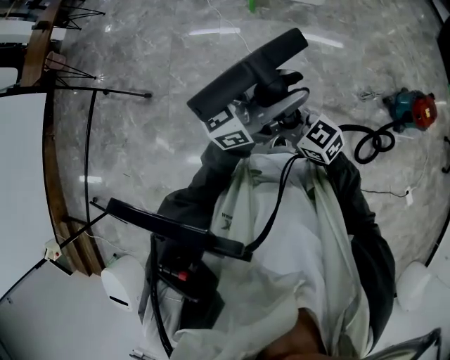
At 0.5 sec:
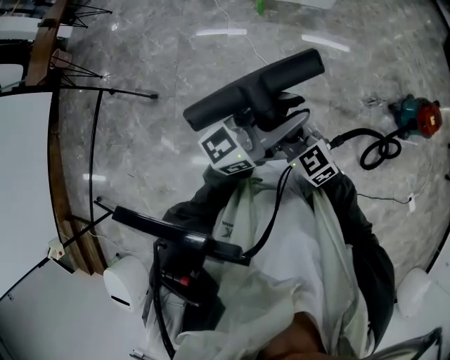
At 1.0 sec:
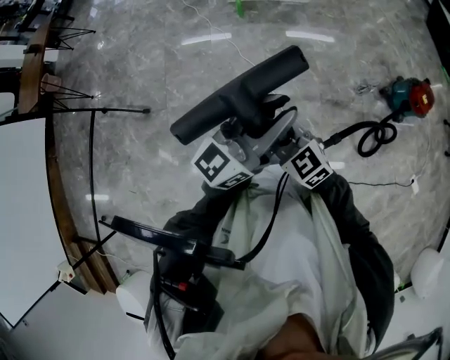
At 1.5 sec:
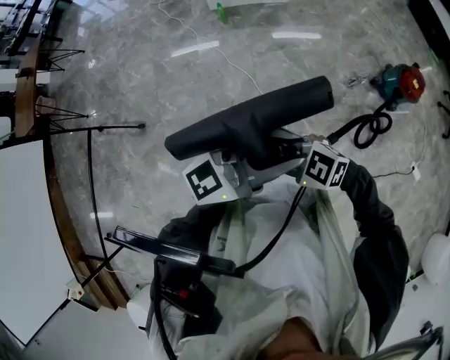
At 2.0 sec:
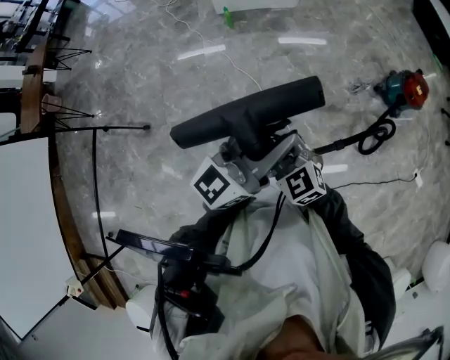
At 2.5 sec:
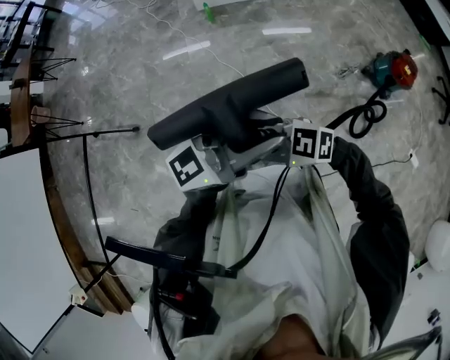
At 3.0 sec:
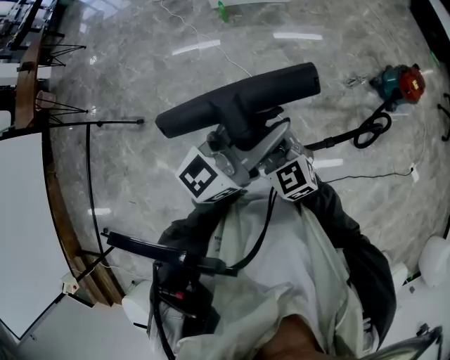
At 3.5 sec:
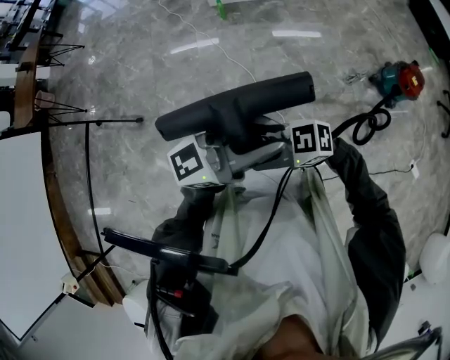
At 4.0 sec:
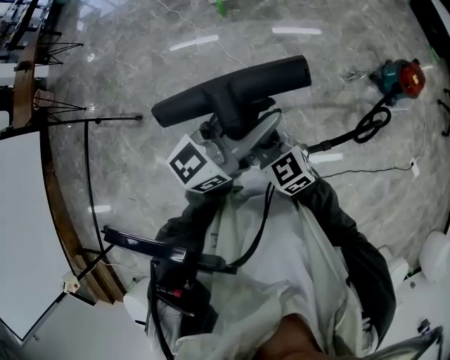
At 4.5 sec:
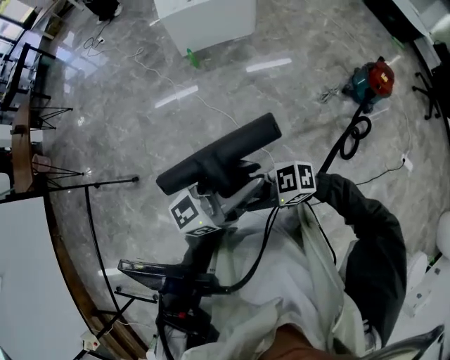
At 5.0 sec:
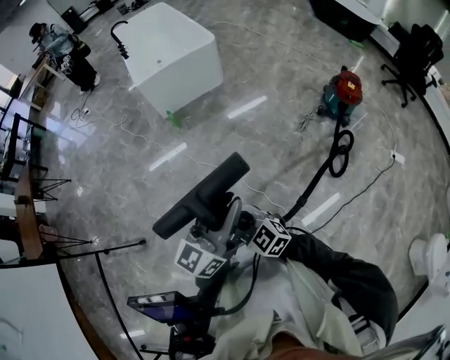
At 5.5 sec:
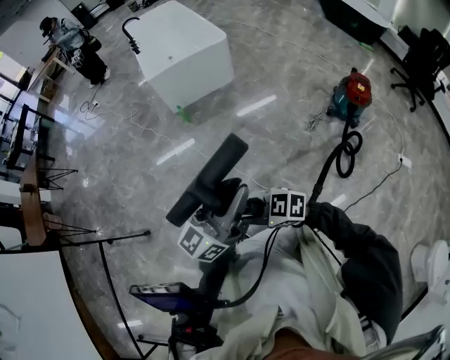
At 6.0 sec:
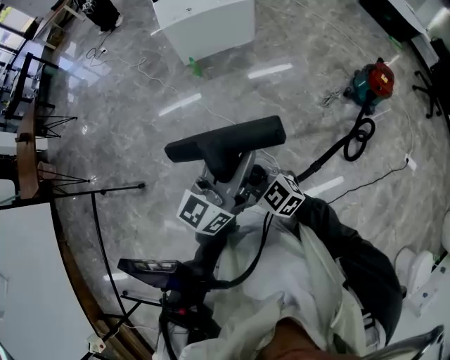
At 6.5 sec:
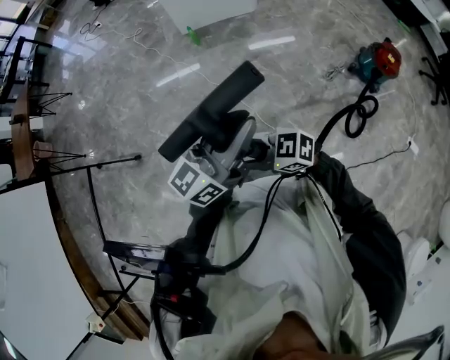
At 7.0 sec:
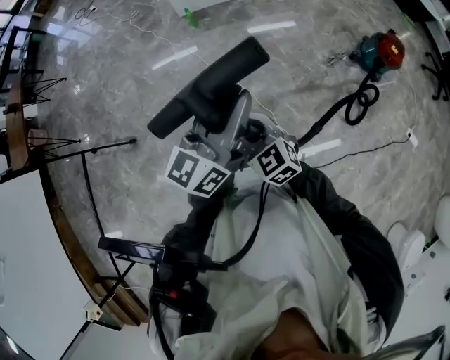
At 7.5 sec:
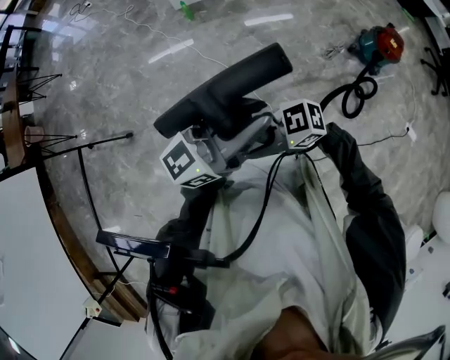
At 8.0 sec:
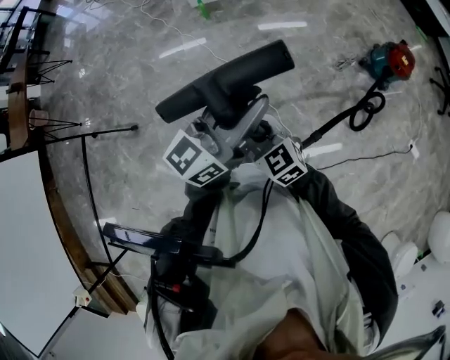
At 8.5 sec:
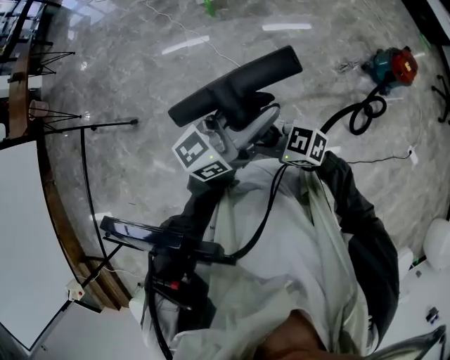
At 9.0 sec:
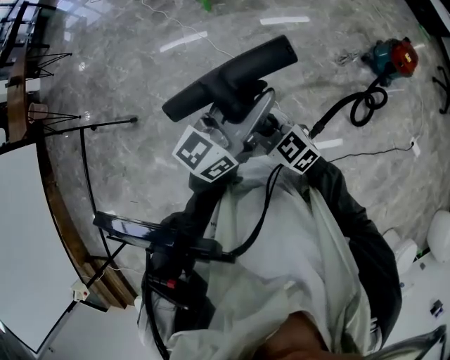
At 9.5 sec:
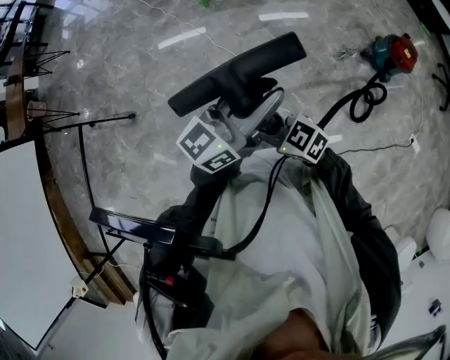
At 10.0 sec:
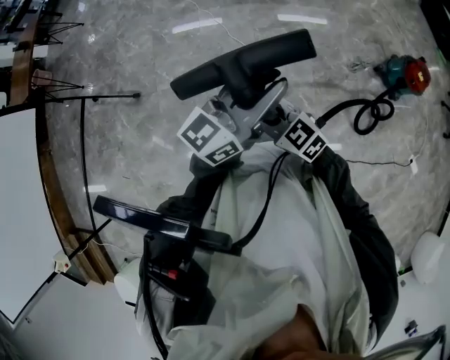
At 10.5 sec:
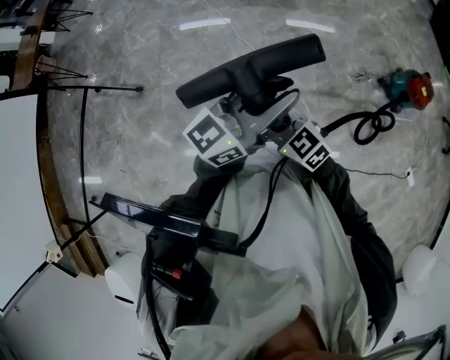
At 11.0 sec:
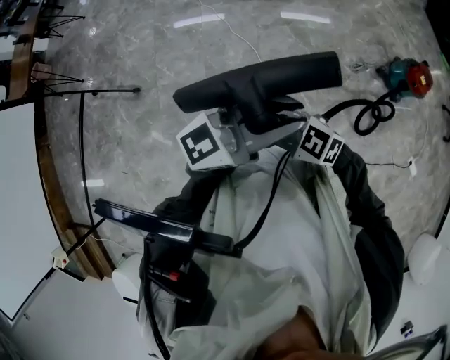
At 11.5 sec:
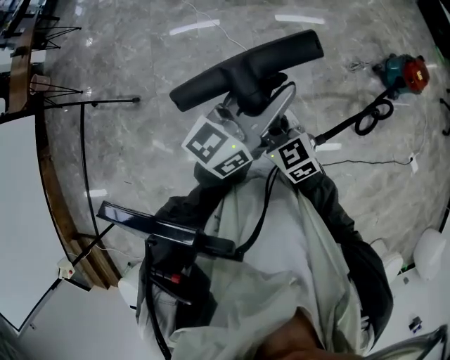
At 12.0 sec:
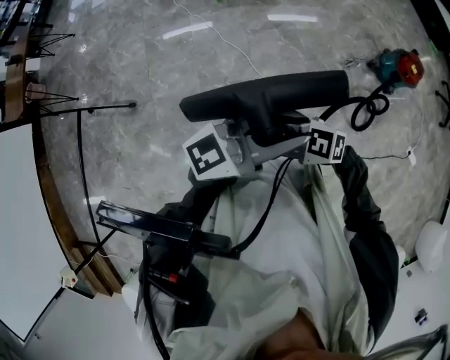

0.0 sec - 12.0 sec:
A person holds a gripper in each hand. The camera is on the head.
0.0 sec - 2.0 sec: The right gripper swivels approximately 30 degrees.
8.0 sec - 10.0 sec: The right gripper swivels some 20 degrees.
10.0 sec - 12.0 sec: The left gripper shifts by some 10 cm, and rotates roughly 30 degrees. Meanwhile the right gripper ends up approximately 5 cm from where it was, and changes its angle by approximately 20 degrees.

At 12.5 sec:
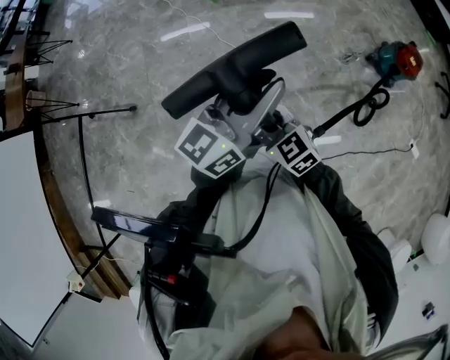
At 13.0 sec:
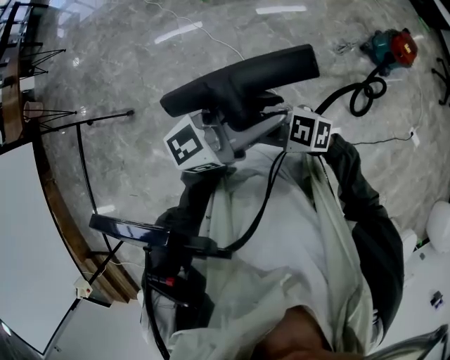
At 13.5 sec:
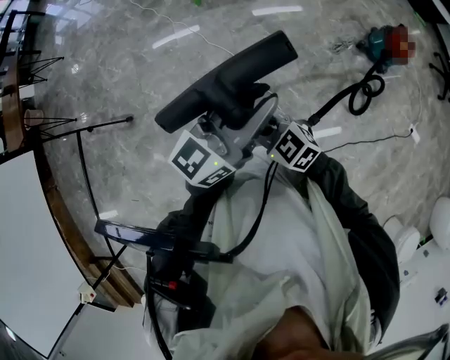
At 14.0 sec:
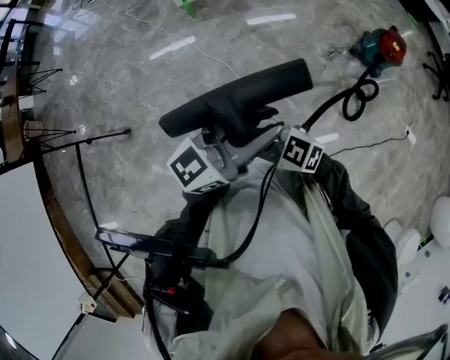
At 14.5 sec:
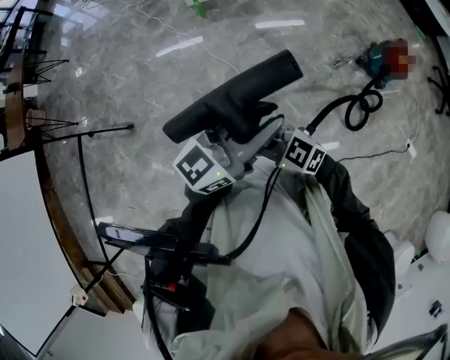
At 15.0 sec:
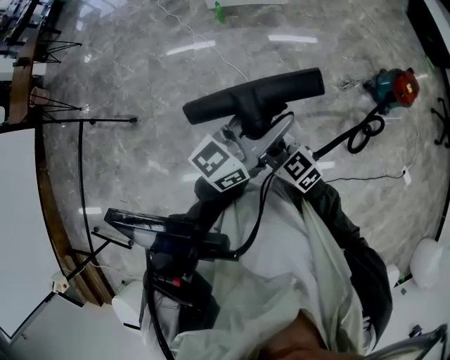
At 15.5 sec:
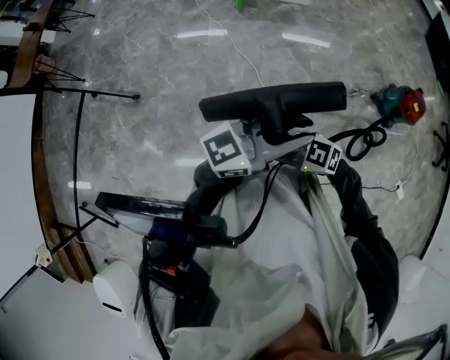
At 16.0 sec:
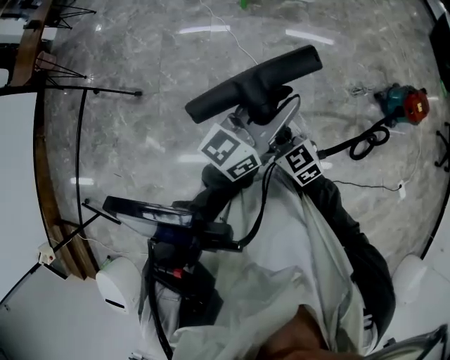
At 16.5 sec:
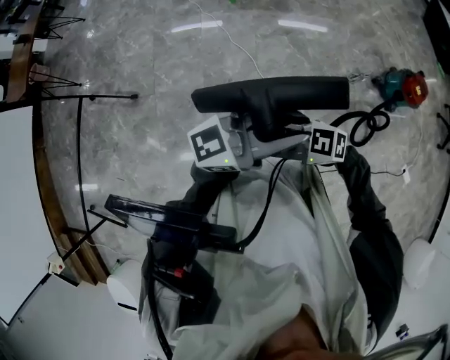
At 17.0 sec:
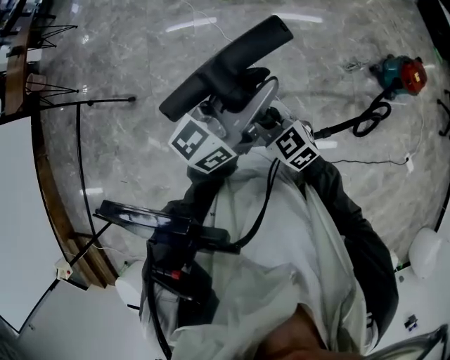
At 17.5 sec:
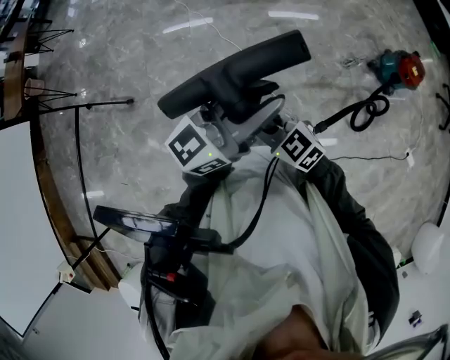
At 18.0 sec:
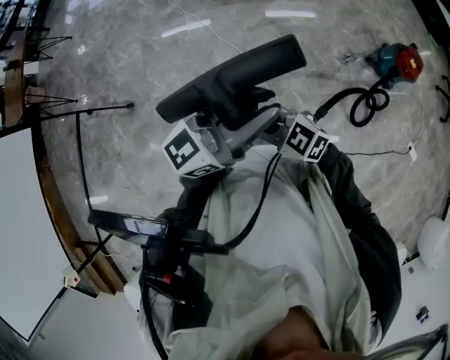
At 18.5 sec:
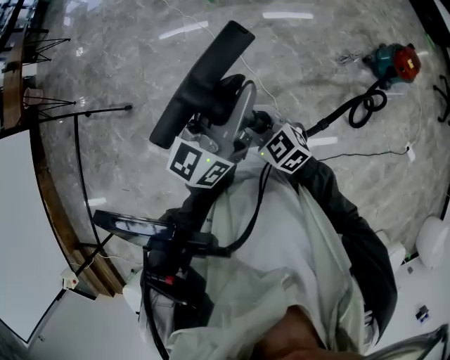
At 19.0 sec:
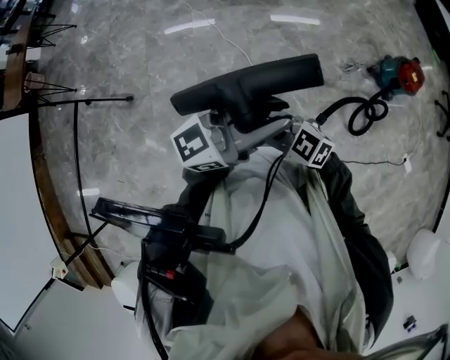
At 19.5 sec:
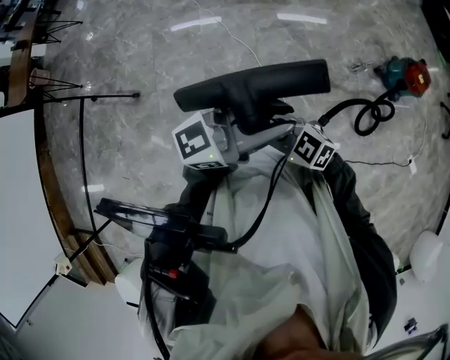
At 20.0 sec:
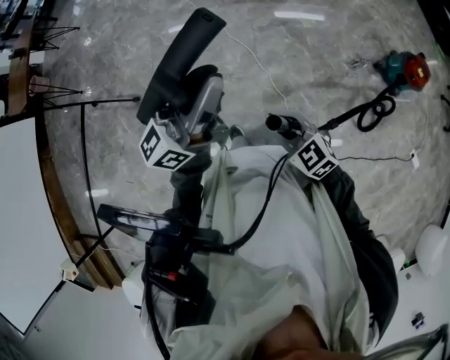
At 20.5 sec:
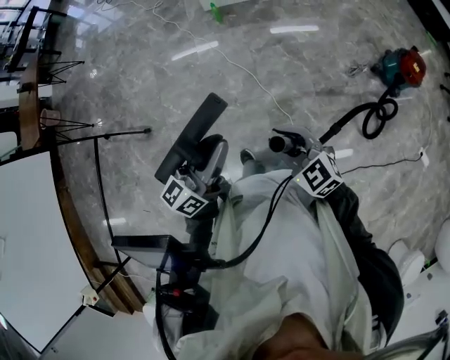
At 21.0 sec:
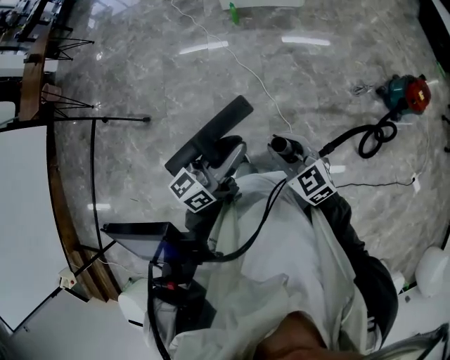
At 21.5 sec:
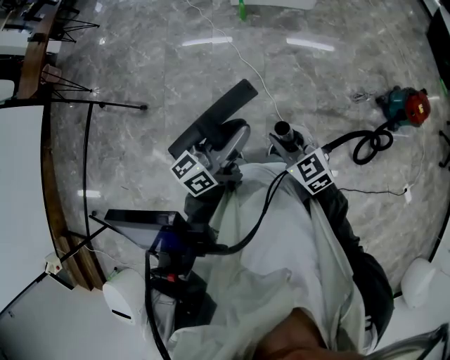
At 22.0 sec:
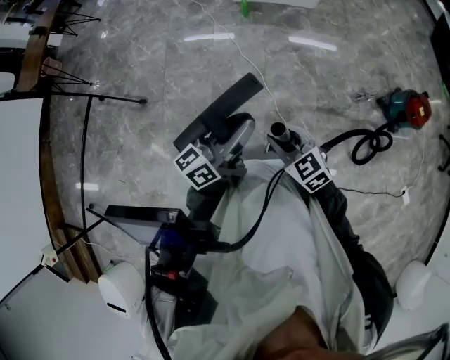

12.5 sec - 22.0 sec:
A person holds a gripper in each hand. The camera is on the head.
12.5 sec - 14.5 sec: The right gripper turns by about 20 degrees, while the left gripper moves about 5 cm.
14.5 sec - 16.5 sec: The right gripper rotates about 30 degrees.
16.5 sec - 18.0 sec: The right gripper turns by roughly 30 degrees.
18.0 sec - 20.0 sec: The left gripper shifts by roughly 15 cm.
20.0 sec - 22.0 sec: The left gripper shifts some 10 cm downward, and swivels roughly 20 degrees.

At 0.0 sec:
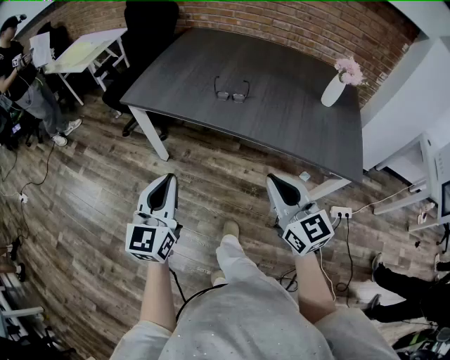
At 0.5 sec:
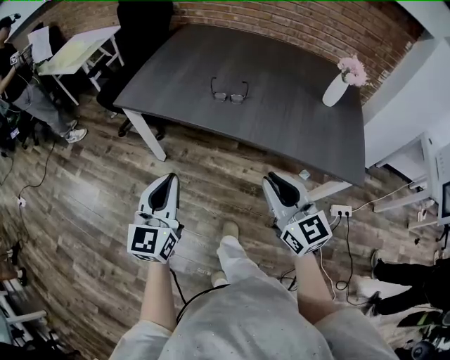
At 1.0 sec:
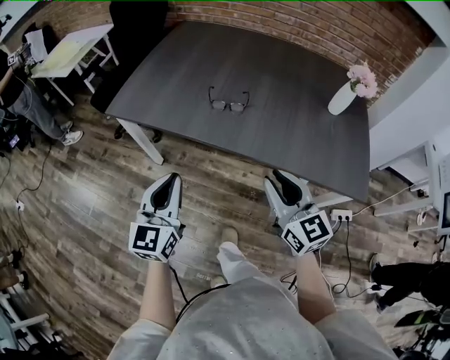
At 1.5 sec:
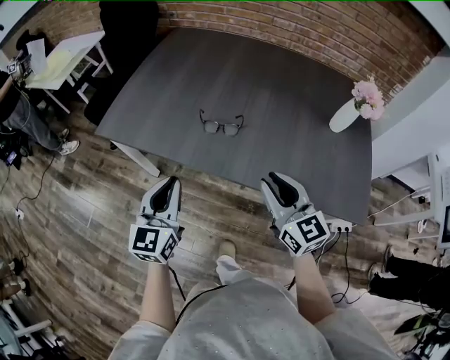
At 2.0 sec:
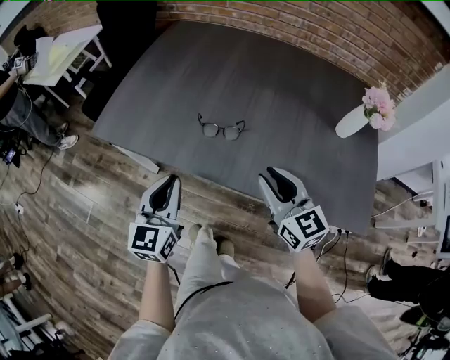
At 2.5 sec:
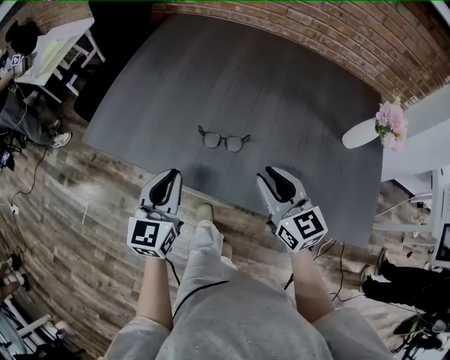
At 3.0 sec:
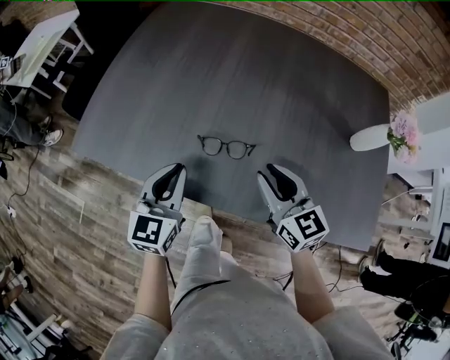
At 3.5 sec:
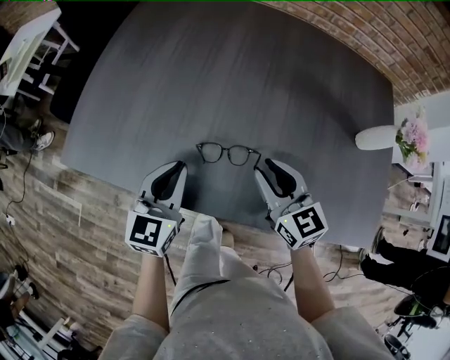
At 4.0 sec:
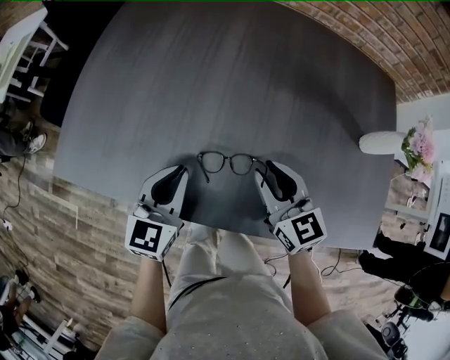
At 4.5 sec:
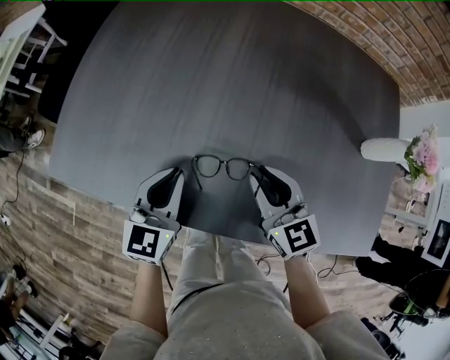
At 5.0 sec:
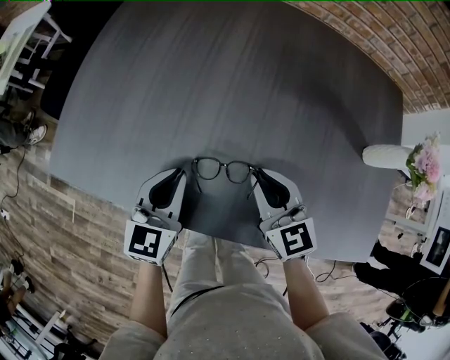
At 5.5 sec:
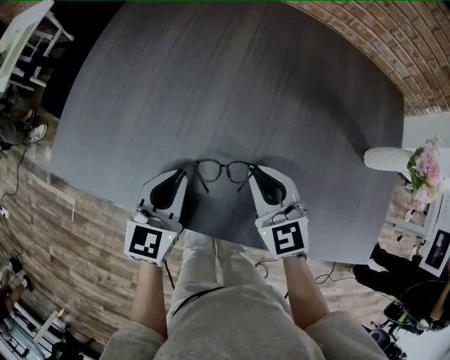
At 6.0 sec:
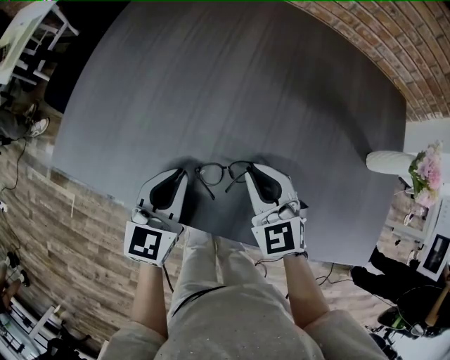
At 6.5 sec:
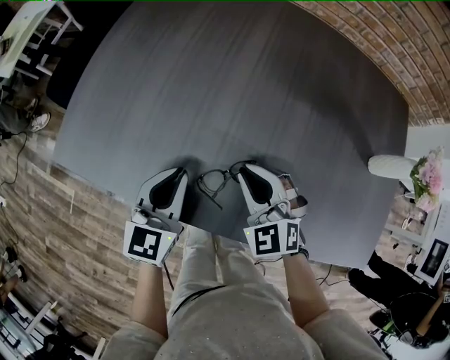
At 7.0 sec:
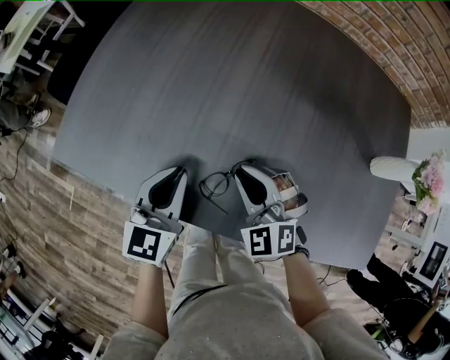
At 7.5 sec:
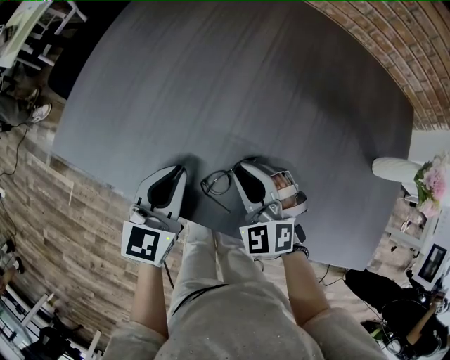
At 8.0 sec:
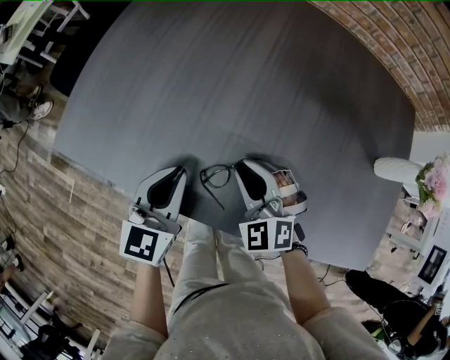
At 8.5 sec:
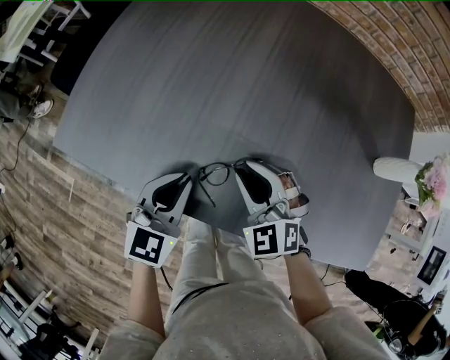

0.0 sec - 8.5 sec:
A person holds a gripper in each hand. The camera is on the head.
0.0 sec - 2.0 sec: The two grippers go some 30 cm forward. The right gripper opens.
2.0 sec - 4.0 sec: The two grippers go roughly 25 cm forward and downward.
4.0 sec - 6.5 sec: The right gripper travels to the left by some 5 cm, and twists about 40 degrees counterclockwise, seen from behind.
6.5 sec - 8.5 sec: There are only small adjustments of the grippers.
